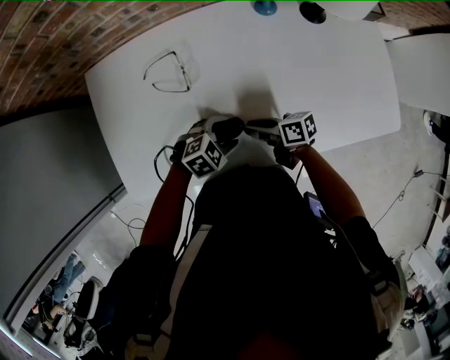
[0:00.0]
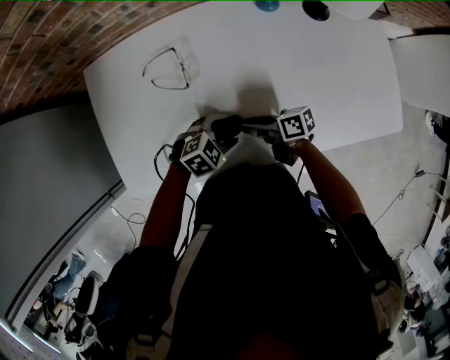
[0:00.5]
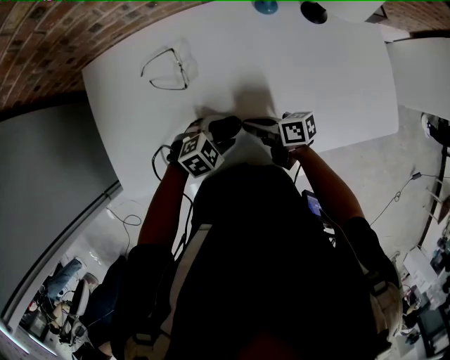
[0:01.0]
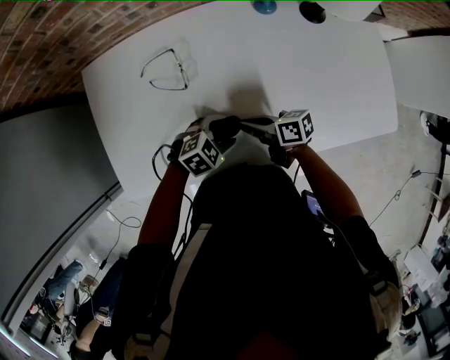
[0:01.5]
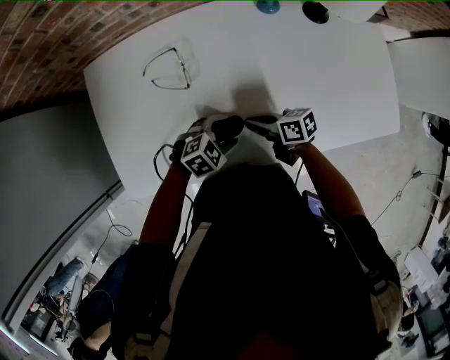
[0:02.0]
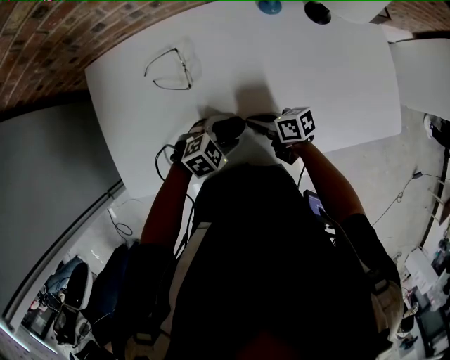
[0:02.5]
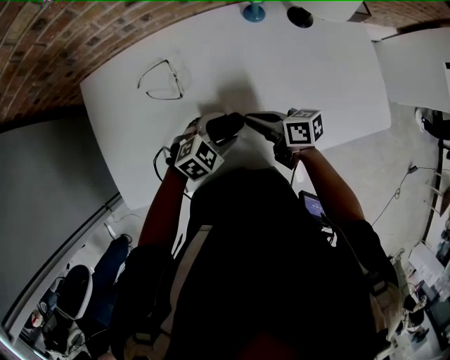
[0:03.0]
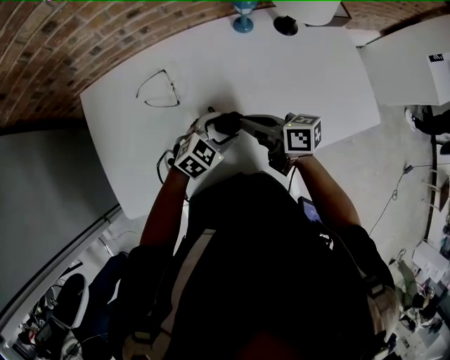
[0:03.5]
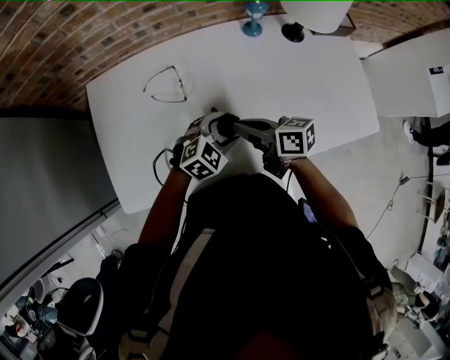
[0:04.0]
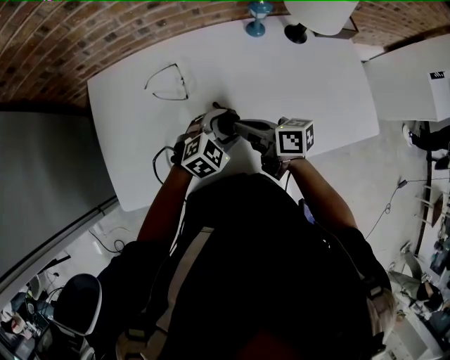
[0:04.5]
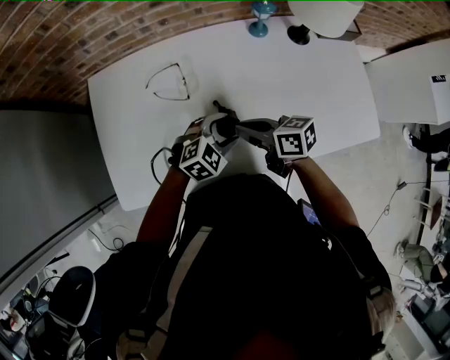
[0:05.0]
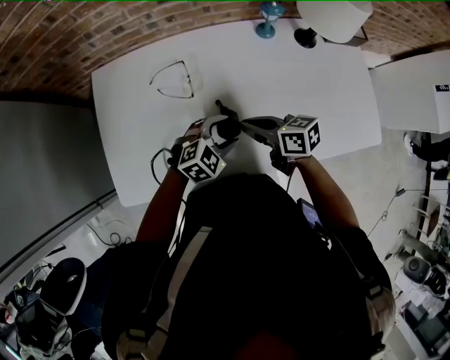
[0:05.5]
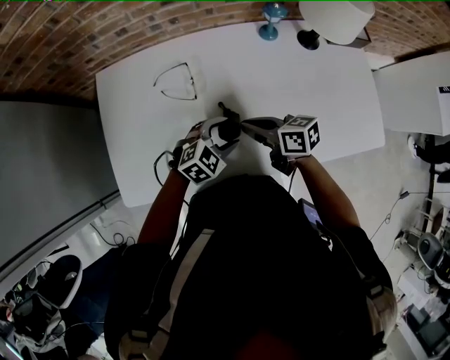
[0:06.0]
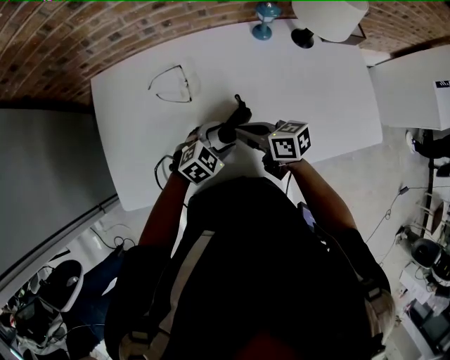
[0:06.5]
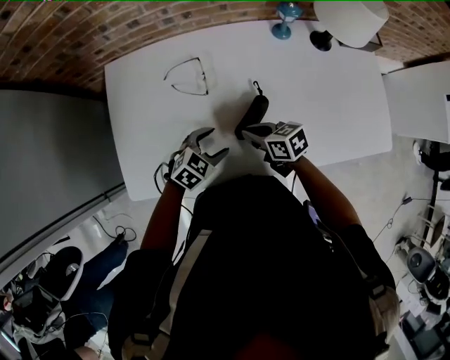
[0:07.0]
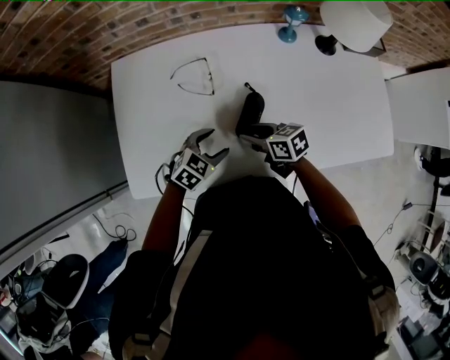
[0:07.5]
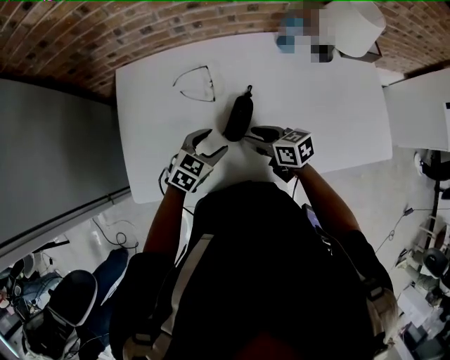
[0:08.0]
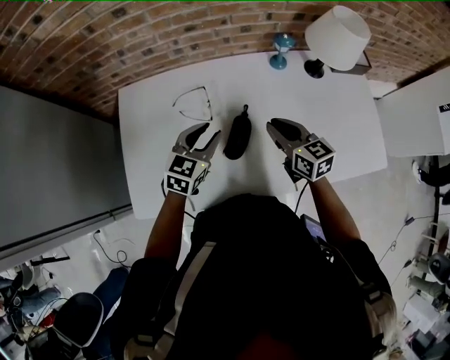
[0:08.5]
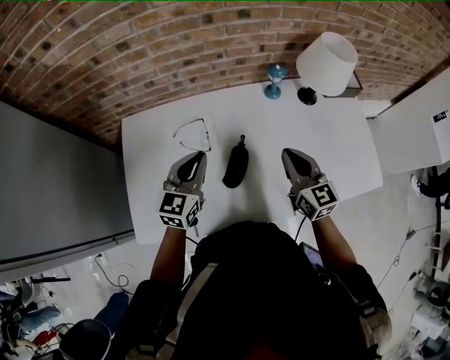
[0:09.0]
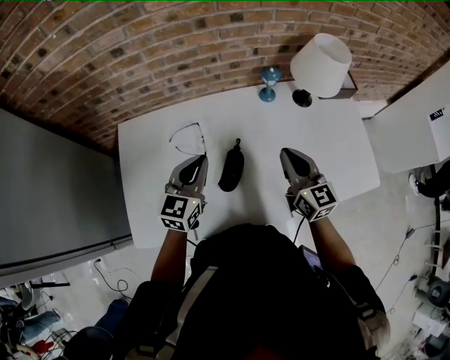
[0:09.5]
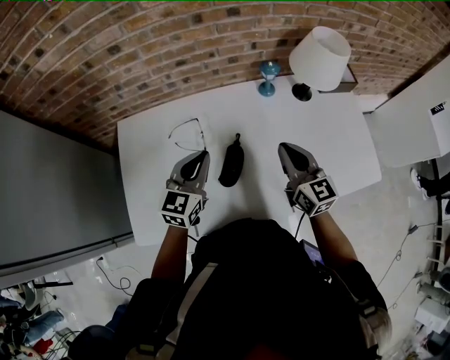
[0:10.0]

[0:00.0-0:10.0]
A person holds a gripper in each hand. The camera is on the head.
0:00.0 to 0:02.0: The grippers make only small movements.
0:02.0 to 0:04.0: The right gripper goes some 15 cm upward. Meanwhile the left gripper goes approximately 5 cm upward.
0:04.0 to 0:06.0: The grippers move only a little.
0:06.0 to 0:08.0: The right gripper opens its fingers; the left gripper moves about 10 cm, and turns by some 20 degrees.
0:08.0 to 0:10.0: The left gripper is displaced upward and forward by approximately 20 cm, changes its angle by about 30 degrees, and closes. The right gripper heads upward and to the right, covering approximately 20 cm, swivels about 50 degrees, and closes its fingers.

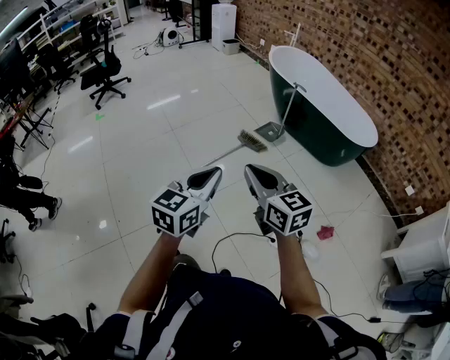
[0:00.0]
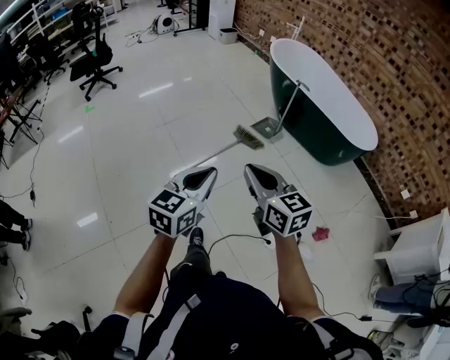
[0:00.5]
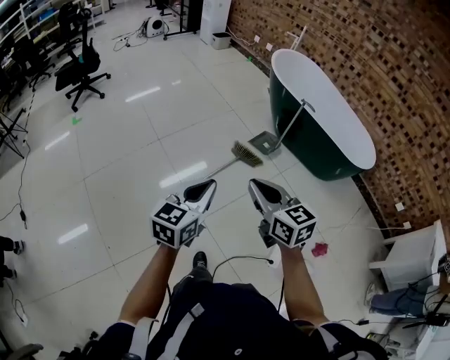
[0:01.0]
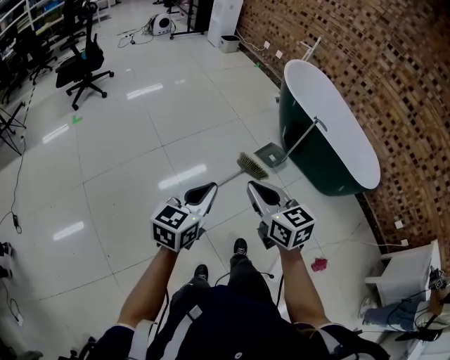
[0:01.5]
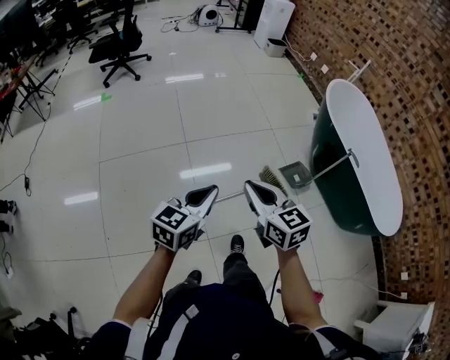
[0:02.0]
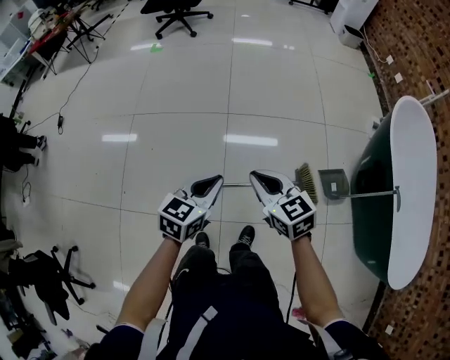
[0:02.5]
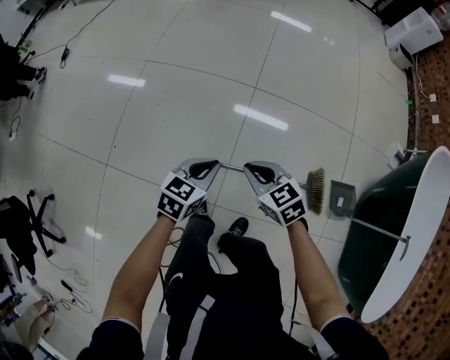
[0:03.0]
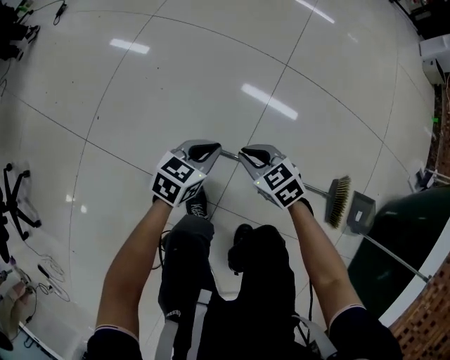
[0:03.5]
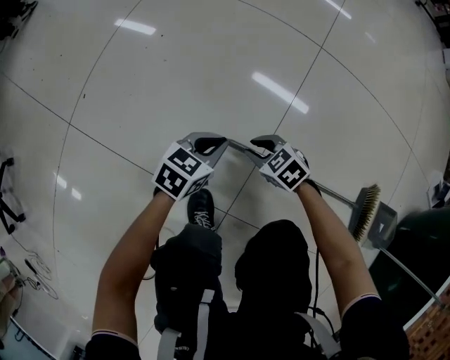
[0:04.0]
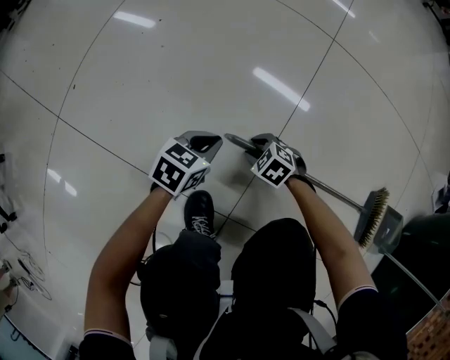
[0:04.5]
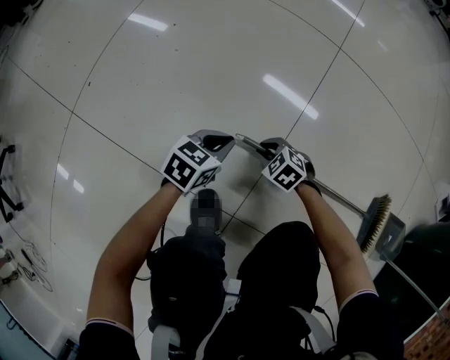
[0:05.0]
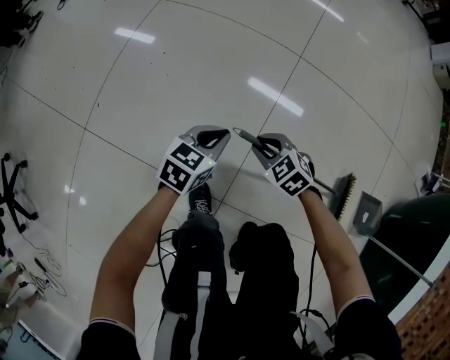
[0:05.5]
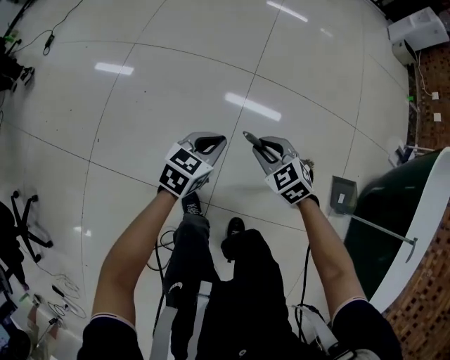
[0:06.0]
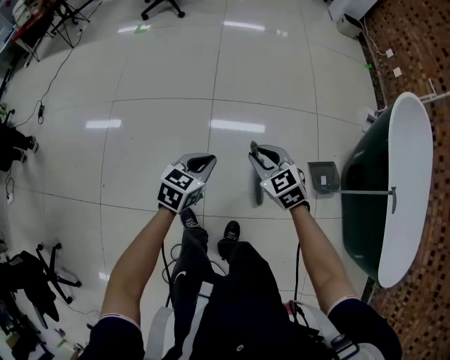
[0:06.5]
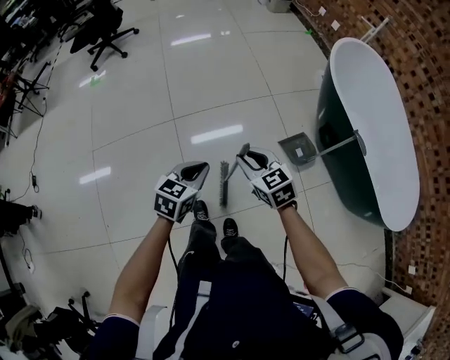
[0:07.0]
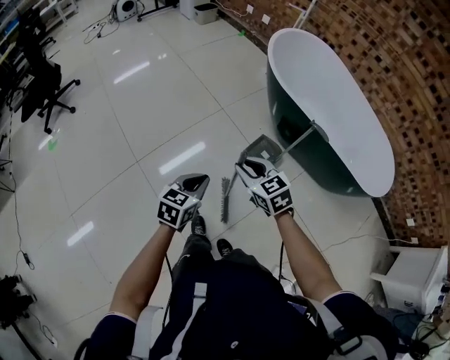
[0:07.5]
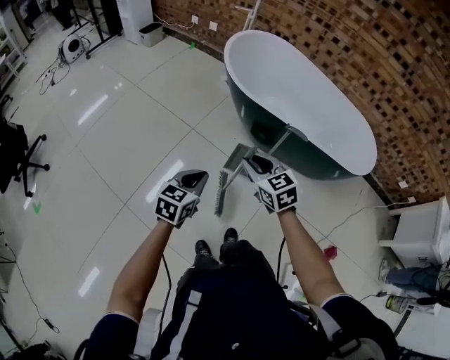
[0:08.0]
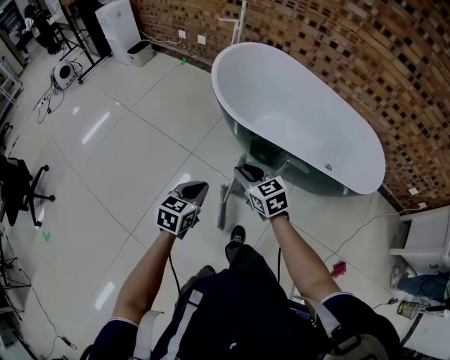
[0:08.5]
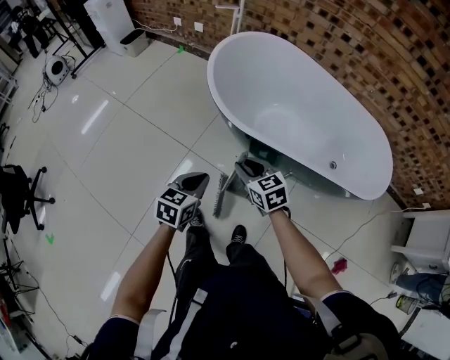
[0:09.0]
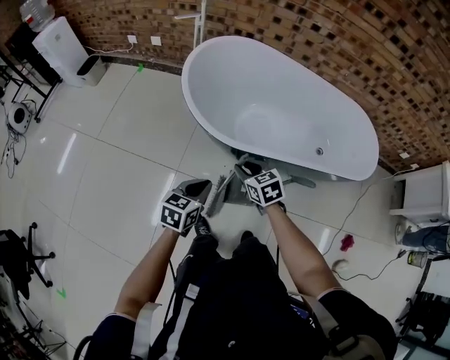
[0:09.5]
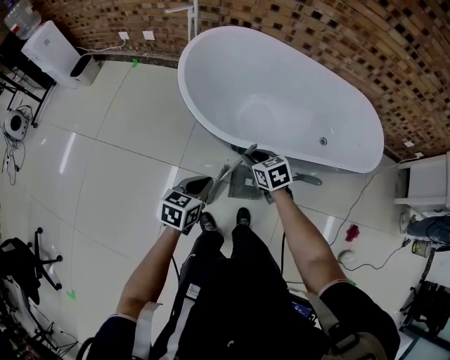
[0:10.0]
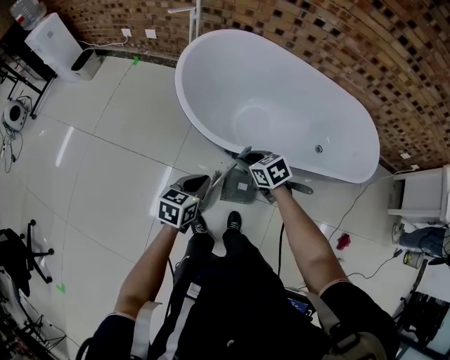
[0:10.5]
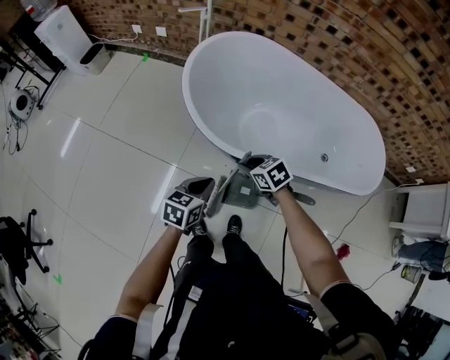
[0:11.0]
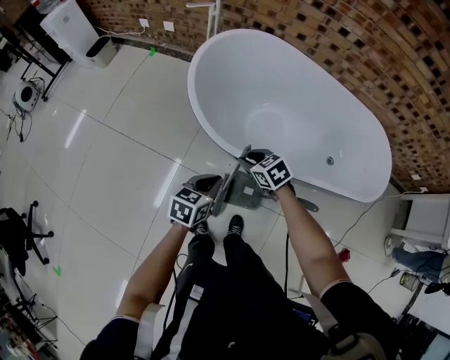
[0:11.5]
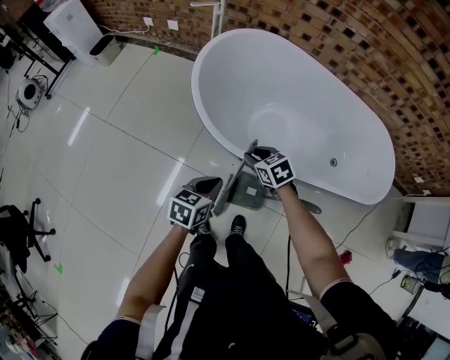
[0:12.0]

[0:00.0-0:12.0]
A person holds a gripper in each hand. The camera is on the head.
0:00.0 to 0:02.0: The two grippers travel together, forward, roughly 40 cm.
0:02.0 to 0:04.0: The two grippers go some 70 cm downward. The left gripper turns by about 40 degrees; the right gripper angles its fingers downward, by roughly 40 degrees, and opens.
0:04.0 to 0:06.0: The two grippers go approximately 35 cm upward. The right gripper changes its angle by roughly 30 degrees.
0:06.0 to 0:08.0: The two grippers travel together, about 50 cm. The left gripper swivels approximately 60 degrees; the right gripper swivels approximately 90 degrees.
0:08.0 to 0:10.0: The left gripper moves forward, approximately 35 cm, and rotates about 20 degrees; the right gripper goes approximately 40 cm forward and downward, and changes its angle by about 30 degrees.
0:10.0 to 0:12.0: The right gripper moves forward, some 5 cm. The left gripper changes place by some 5 cm.

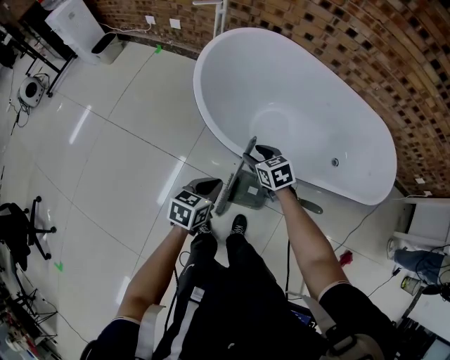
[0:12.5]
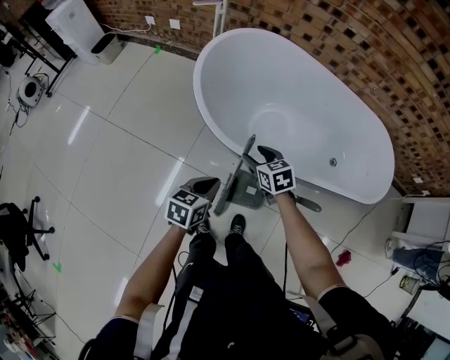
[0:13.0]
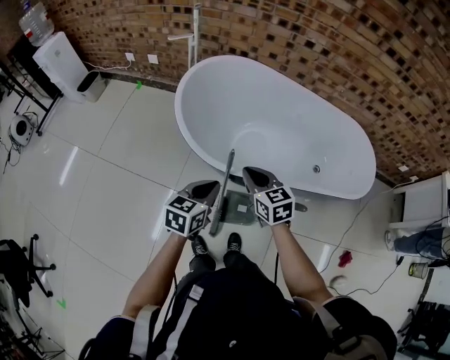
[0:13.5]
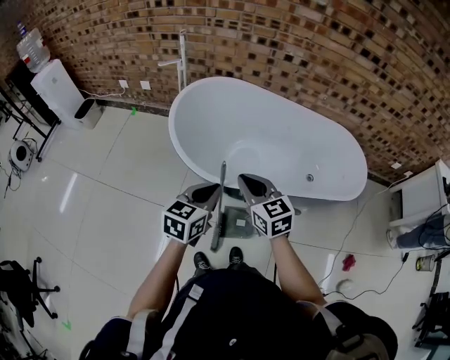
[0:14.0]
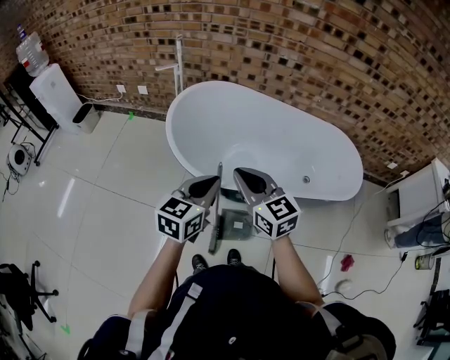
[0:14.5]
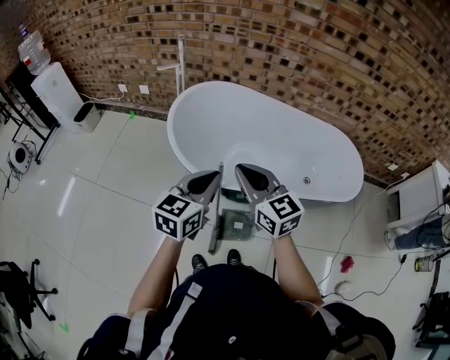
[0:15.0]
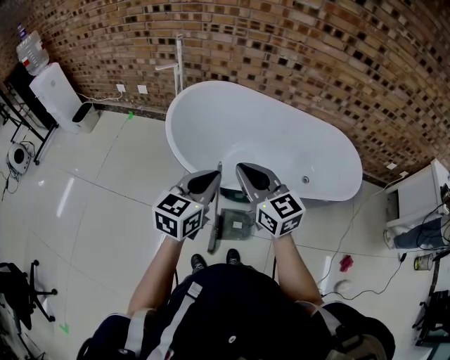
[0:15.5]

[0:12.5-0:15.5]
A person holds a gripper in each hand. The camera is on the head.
0:12.5 to 0:14.0: Both grippers travel together upward, about 20 cm. The right gripper changes its angle by some 30 degrees, and closes. The left gripper rotates about 20 degrees.
0:14.0 to 0:15.5: The grippers both shift upward by roughly 10 cm.

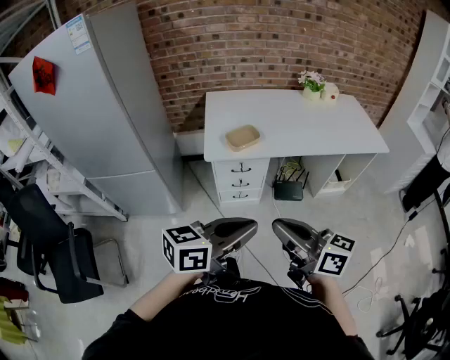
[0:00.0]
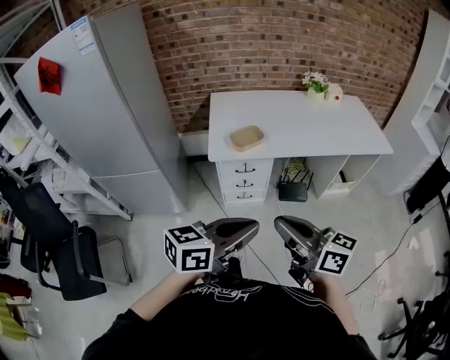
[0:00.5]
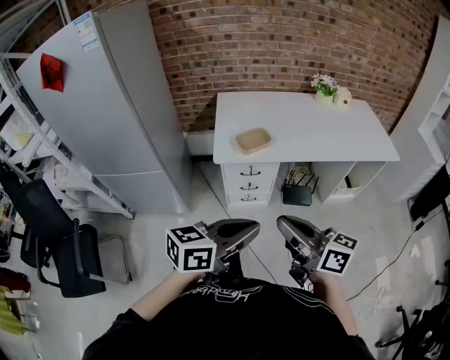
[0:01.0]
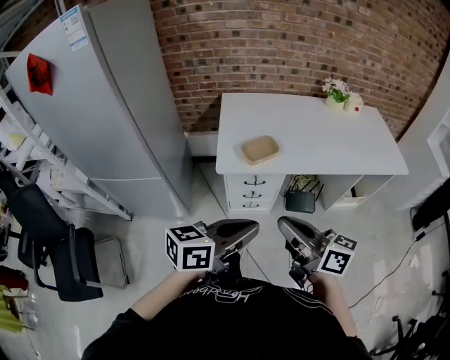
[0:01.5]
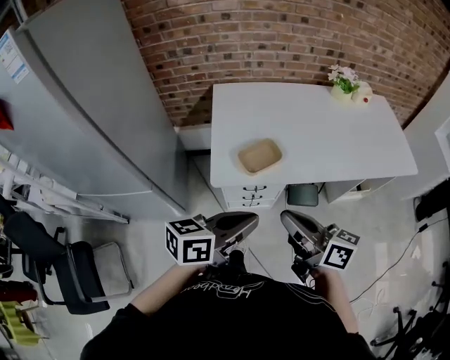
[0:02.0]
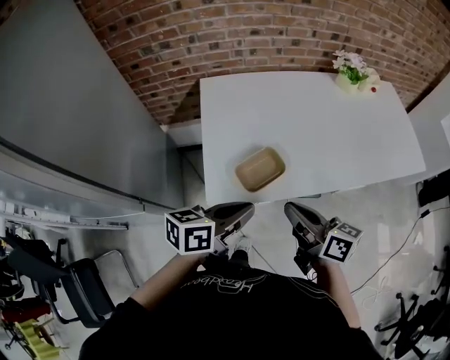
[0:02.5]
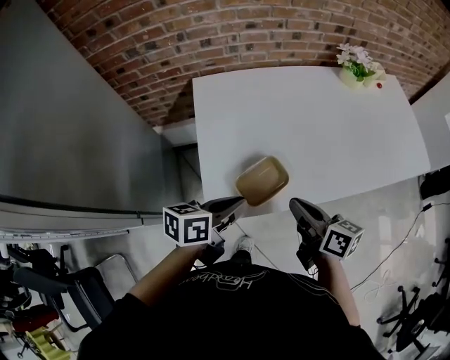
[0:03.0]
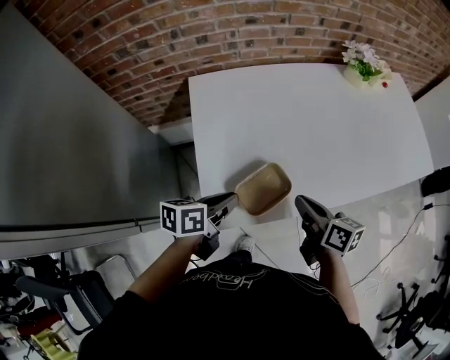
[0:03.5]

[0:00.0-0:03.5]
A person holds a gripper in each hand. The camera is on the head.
0:00.0 to 0:02.0: The two grippers go approximately 25 cm forward.
0:02.0 to 0:03.5: The right gripper travels forward and downward by approximately 25 cm, and rotates approximately 30 degrees; the left gripper is displaced forward, downward and to the left by approximately 30 cm, and turns by roughly 20 degrees.
